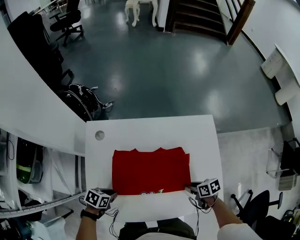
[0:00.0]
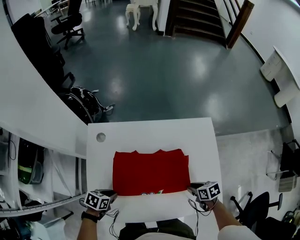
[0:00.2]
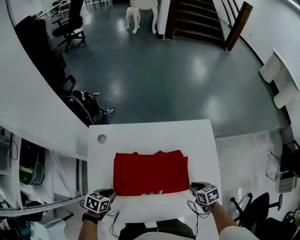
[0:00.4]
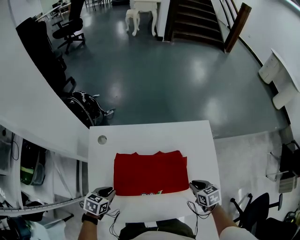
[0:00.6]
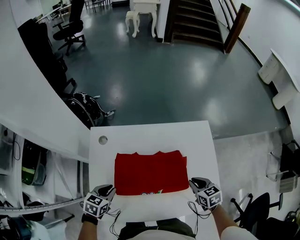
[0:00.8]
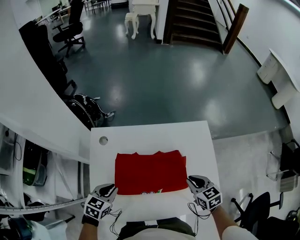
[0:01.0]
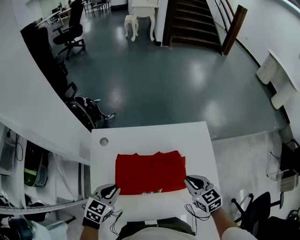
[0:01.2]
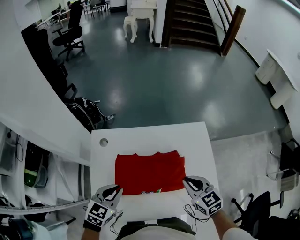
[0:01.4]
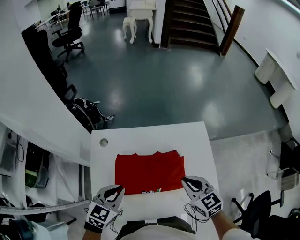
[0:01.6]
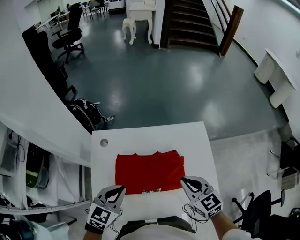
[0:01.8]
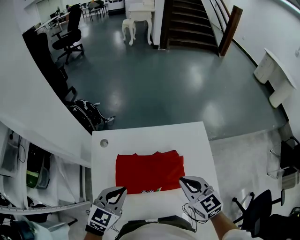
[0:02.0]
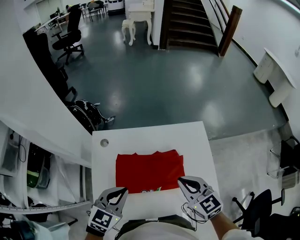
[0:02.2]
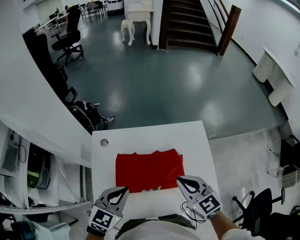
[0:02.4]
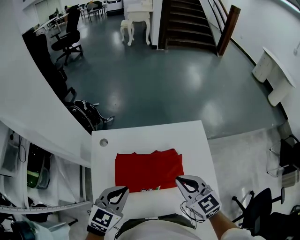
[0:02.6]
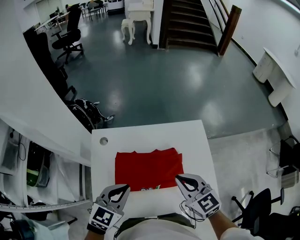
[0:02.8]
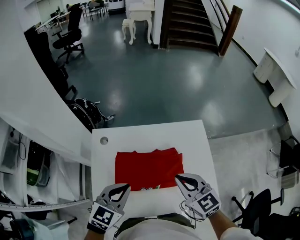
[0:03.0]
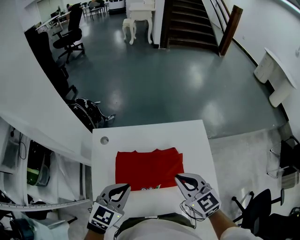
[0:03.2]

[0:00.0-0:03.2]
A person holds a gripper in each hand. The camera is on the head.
0:00.0 to 0:01.6: The grippers both shift upward by roughly 25 cm. The left gripper turns by roughly 50 degrees. The right gripper turns by some 50 degrees.
0:01.6 to 0:03.2: The two grippers go about 5 cm upward.

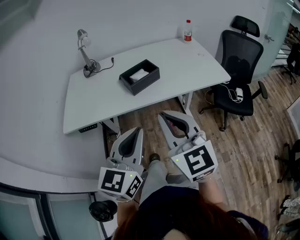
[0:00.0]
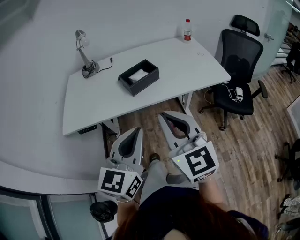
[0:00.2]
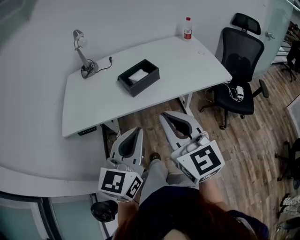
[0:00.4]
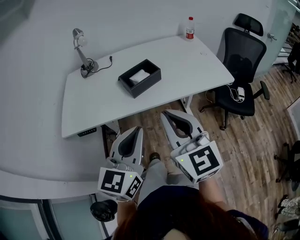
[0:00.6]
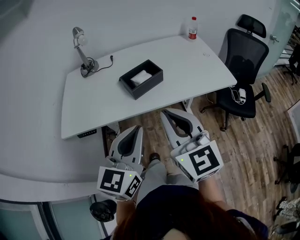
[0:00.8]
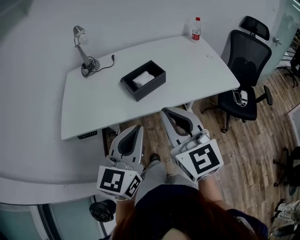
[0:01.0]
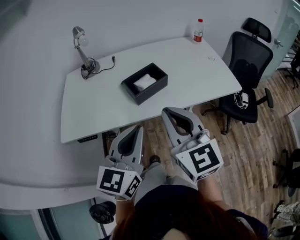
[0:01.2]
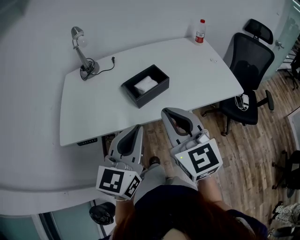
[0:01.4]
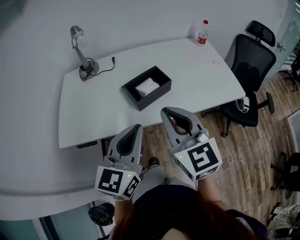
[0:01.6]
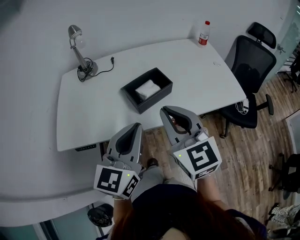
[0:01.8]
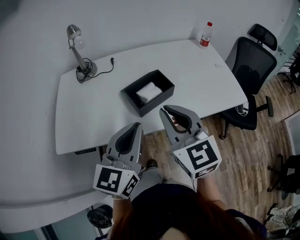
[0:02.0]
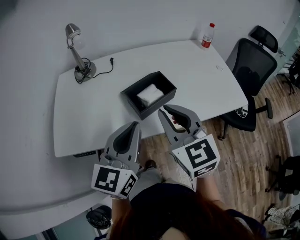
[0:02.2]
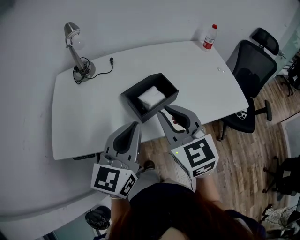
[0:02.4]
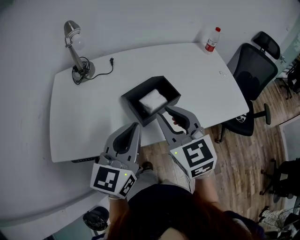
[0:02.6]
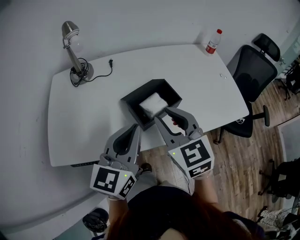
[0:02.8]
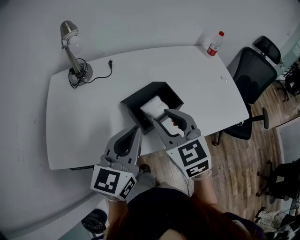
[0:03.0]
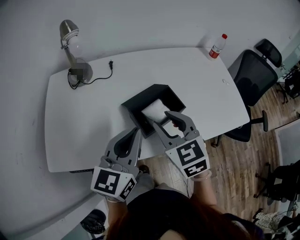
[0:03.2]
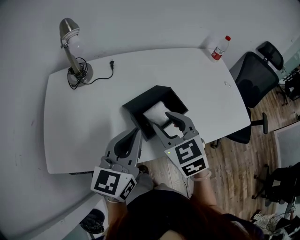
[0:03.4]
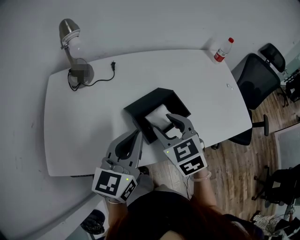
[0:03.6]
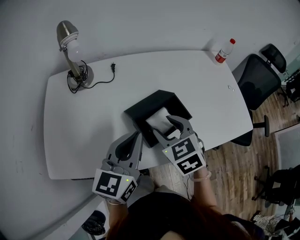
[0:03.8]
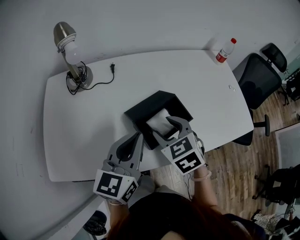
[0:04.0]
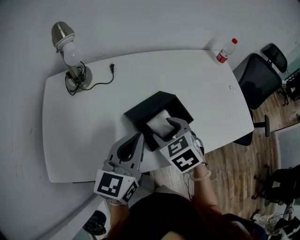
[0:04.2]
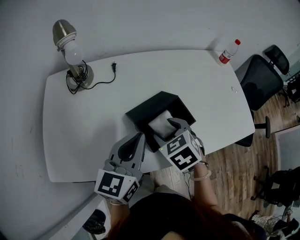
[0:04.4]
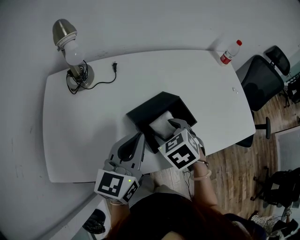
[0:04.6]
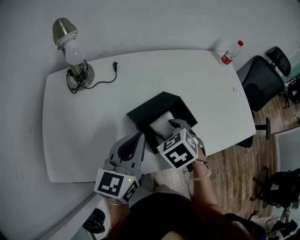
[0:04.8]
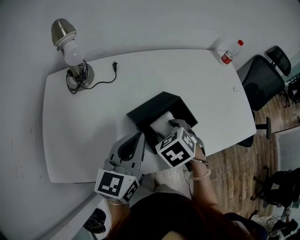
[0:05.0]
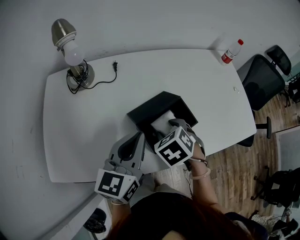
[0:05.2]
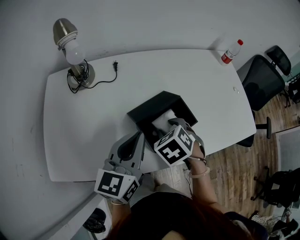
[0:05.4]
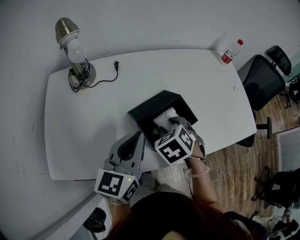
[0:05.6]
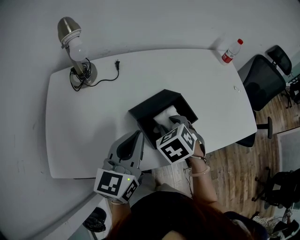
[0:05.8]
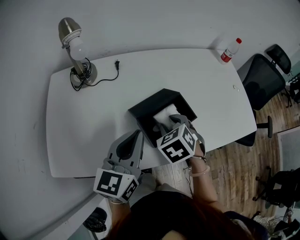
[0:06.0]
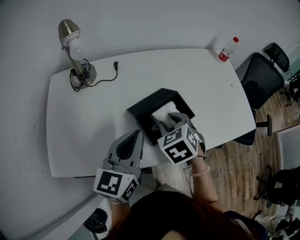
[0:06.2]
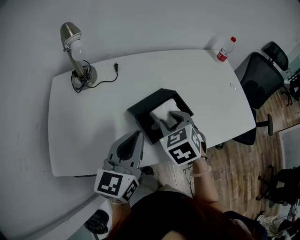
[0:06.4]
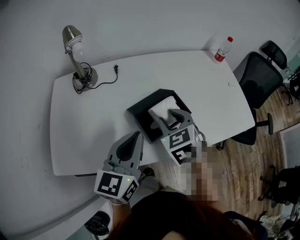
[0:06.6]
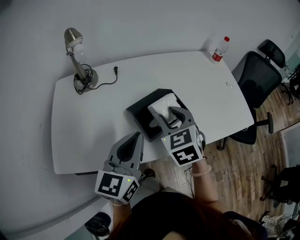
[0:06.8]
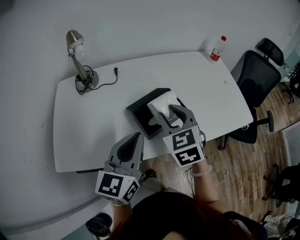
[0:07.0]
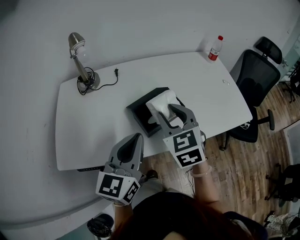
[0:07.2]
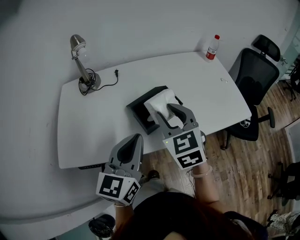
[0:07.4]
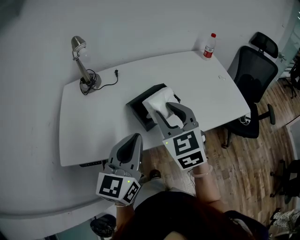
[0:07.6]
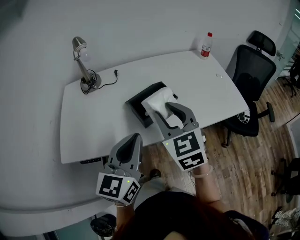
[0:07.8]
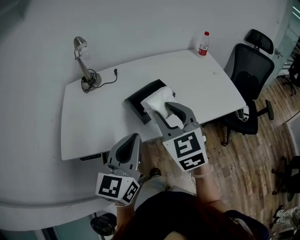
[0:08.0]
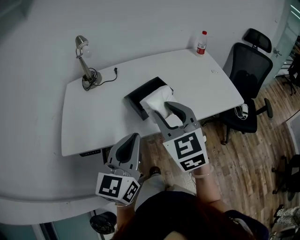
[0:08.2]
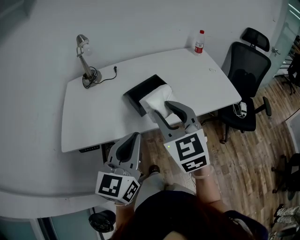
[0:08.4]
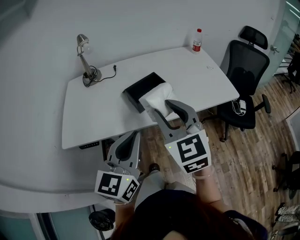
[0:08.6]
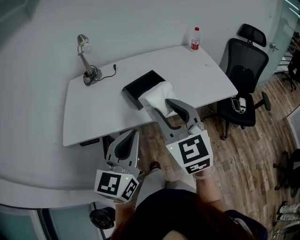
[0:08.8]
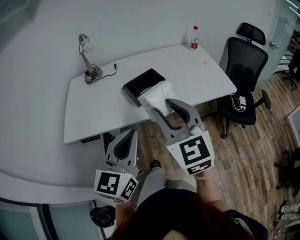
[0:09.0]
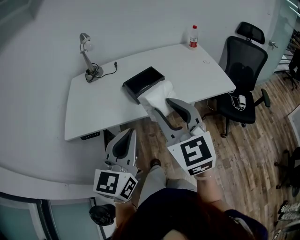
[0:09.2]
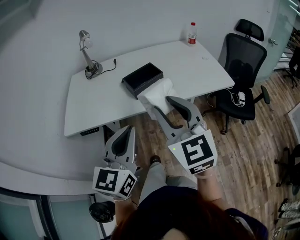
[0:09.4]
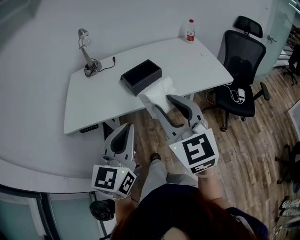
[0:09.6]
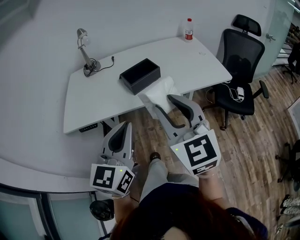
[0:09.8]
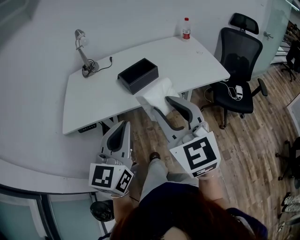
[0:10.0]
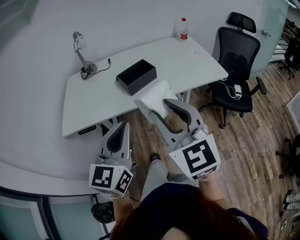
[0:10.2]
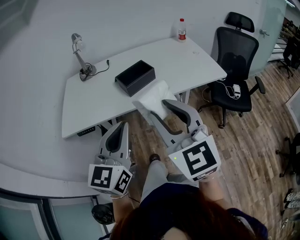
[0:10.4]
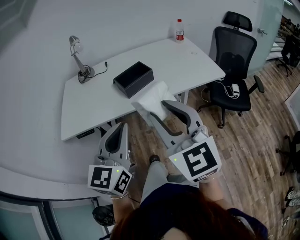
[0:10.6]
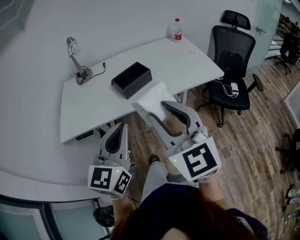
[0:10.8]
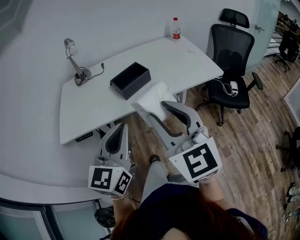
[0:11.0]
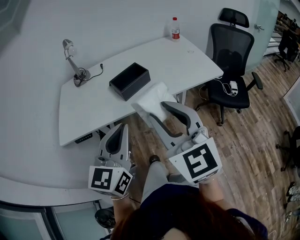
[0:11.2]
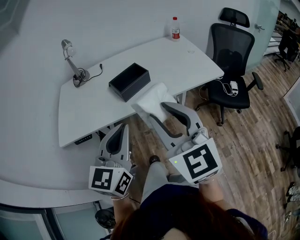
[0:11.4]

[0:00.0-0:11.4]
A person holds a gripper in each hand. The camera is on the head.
0:00.0 to 0:01.4: Both grippers move forward, about 15 cm.
0:01.4 to 0:02.8: Both grippers move forward, some 15 cm. The right gripper opens.
0:02.8 to 0:04.2: The right gripper is displaced downward and forward by some 15 cm, angles its fingers downward, by about 30 degrees, and opens up, while the left gripper shifts about 10 cm forward.
0:04.2 to 0:05.6: The grippers move only a little.
0:05.6 to 0:07.2: The left gripper goes some 10 cm backward. The right gripper is displaced upward by roughly 15 cm, and tilts its fingers some 40 degrees upward.
0:07.2 to 0:08.6: The right gripper moves backward and upward, about 20 cm. Meanwhile the left gripper moves backward, roughly 15 cm.
0:08.6 to 0:10.0: Both grippers travel together backward, roughly 10 cm.
0:10.0 to 0:11.4: The grippers stay close to where they were, moving slightly.

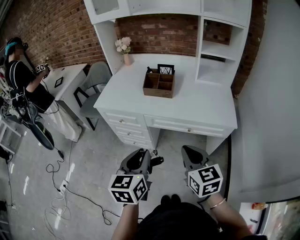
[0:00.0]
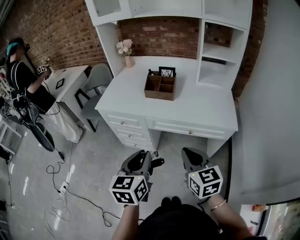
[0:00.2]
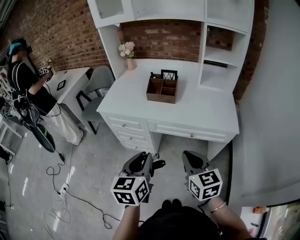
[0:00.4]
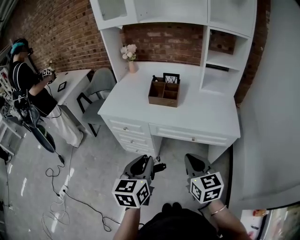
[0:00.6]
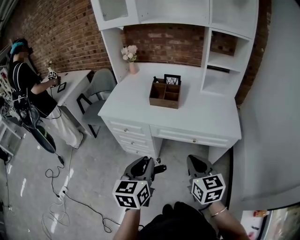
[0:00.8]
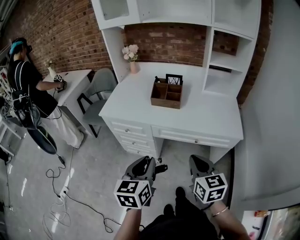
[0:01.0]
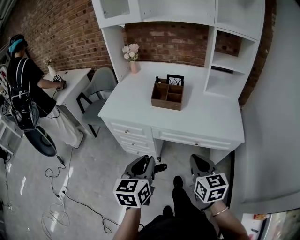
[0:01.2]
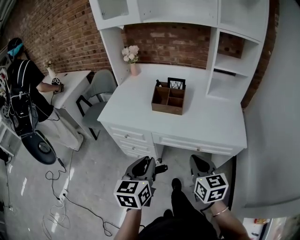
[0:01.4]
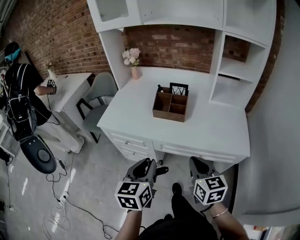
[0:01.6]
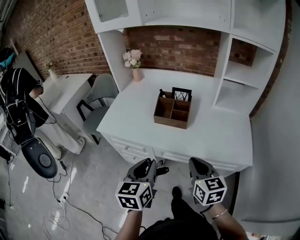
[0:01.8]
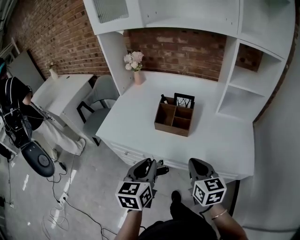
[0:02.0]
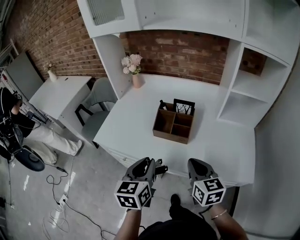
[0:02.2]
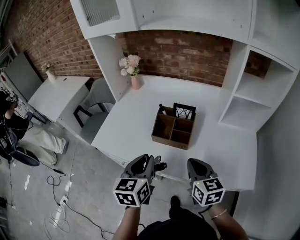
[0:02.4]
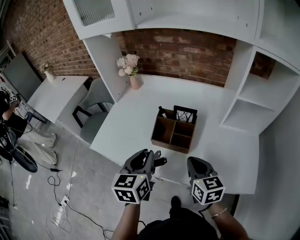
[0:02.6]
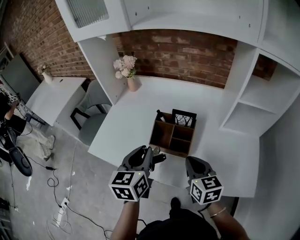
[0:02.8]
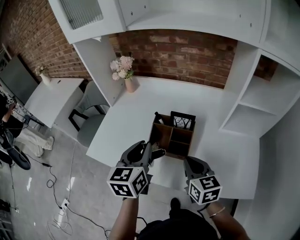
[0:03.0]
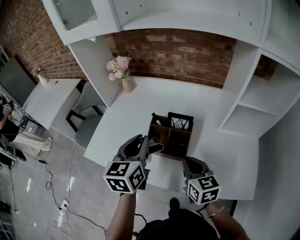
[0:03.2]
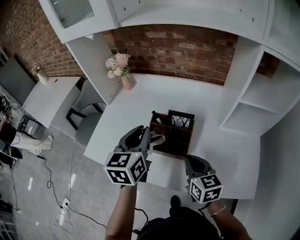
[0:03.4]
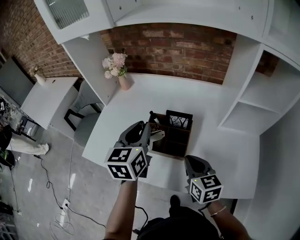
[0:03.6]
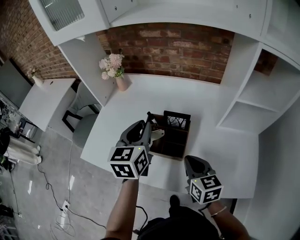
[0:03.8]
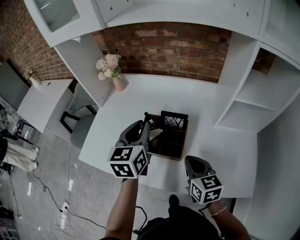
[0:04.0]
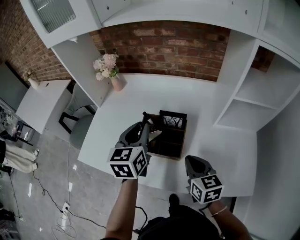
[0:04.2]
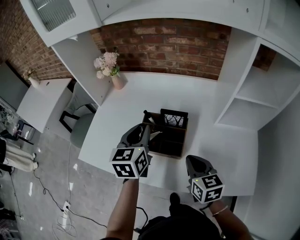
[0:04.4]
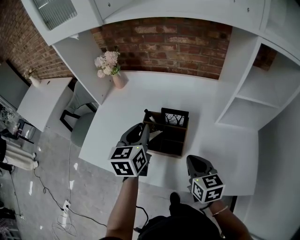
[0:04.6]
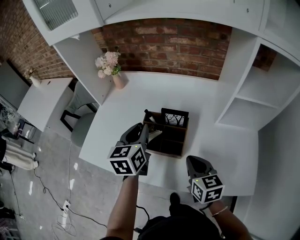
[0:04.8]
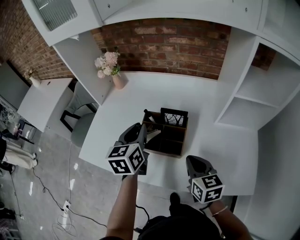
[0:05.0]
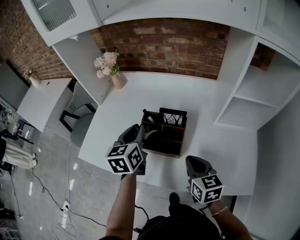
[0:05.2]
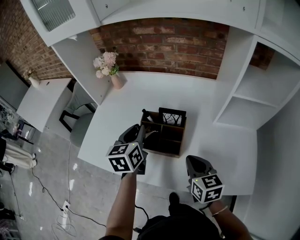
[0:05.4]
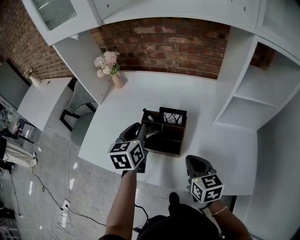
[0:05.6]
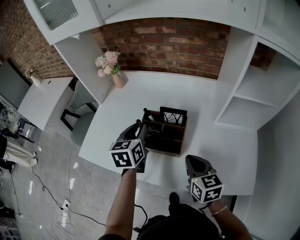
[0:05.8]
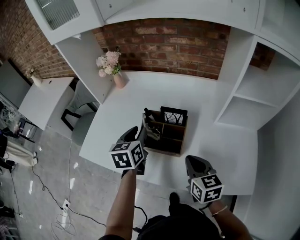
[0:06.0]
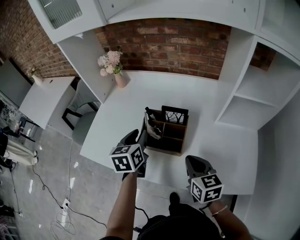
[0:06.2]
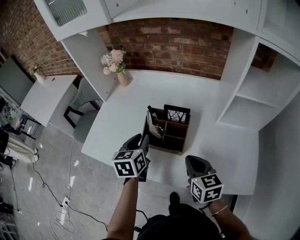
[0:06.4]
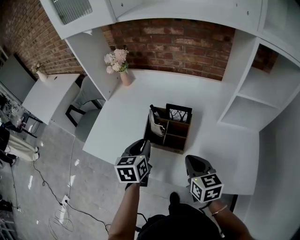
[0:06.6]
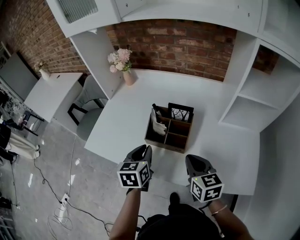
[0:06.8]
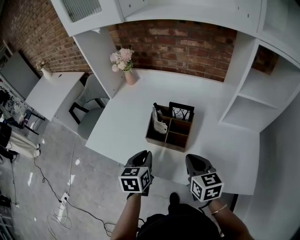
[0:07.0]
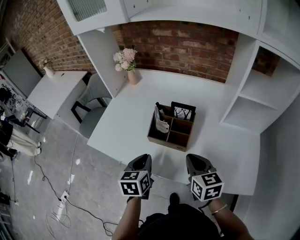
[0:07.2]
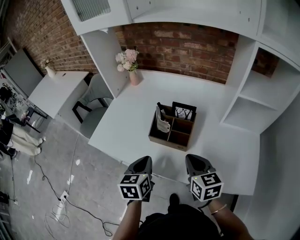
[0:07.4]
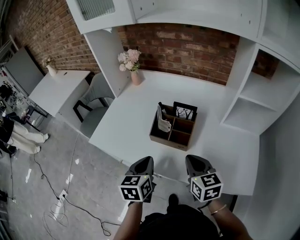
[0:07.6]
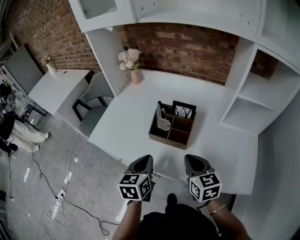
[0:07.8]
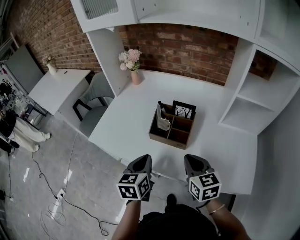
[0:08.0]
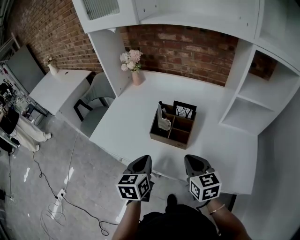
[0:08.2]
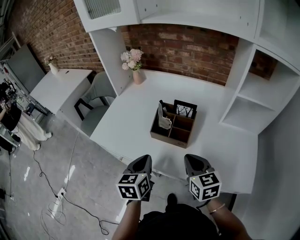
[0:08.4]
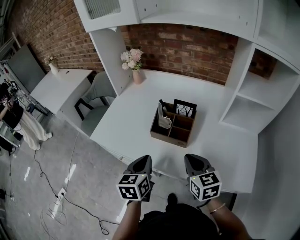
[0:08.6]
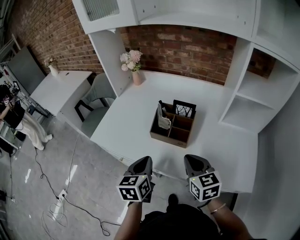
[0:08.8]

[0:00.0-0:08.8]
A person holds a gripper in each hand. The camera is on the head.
0:00.0 to 0:01.4: Both grippers travel together forward, some 10 cm.
0:01.4 to 0:03.0: The two grippers go roughly 35 cm forward.
0:03.0 to 0:04.4: The left gripper heads forward, covering approximately 10 cm.
0:04.4 to 0:05.8: The grippers stay close to where they were, moving slightly.
0:05.8 to 0:07.4: The left gripper is displaced backward by about 15 cm, and closes. Meanwhile the right gripper ends up approximately 5 cm from where it was.
0:07.4 to 0:08.8: The grippers make only small movements.
